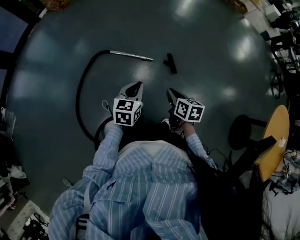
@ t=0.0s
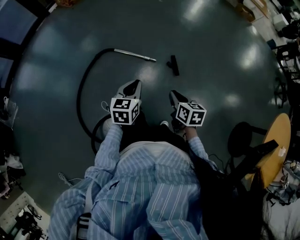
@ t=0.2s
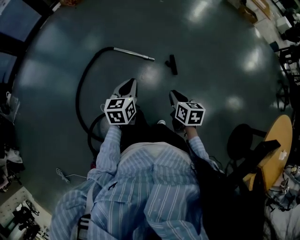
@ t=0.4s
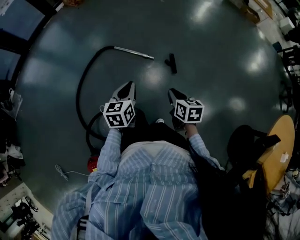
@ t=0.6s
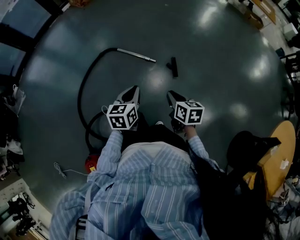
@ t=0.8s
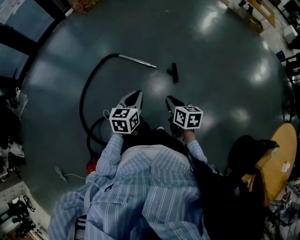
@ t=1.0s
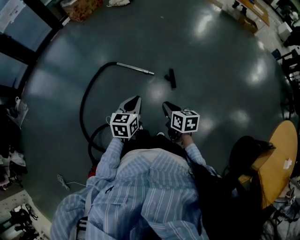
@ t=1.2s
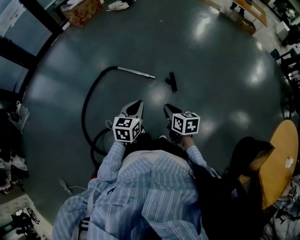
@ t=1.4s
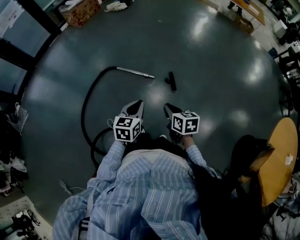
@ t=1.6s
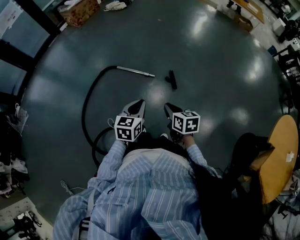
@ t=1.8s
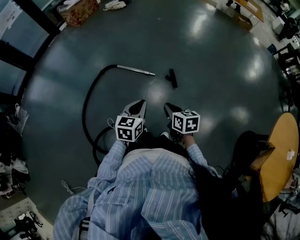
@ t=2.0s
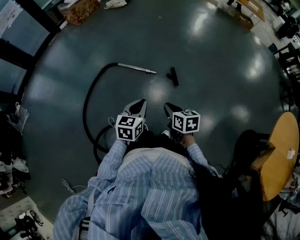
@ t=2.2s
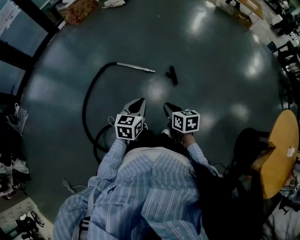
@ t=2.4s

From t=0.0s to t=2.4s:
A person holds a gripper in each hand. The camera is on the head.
From t=0.0s to t=1.2s: The grippers both shift backward and to the right by roughly 15 cm.
From t=1.2s to t=2.4s: The grippers move only a little.

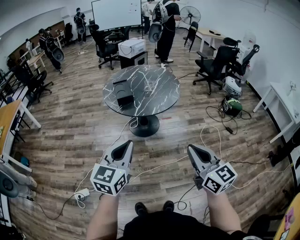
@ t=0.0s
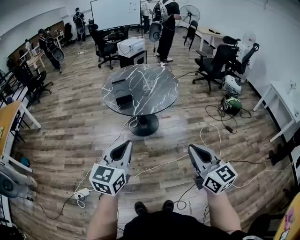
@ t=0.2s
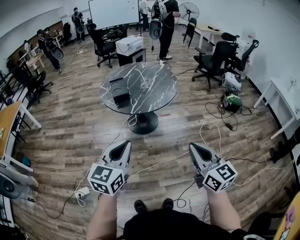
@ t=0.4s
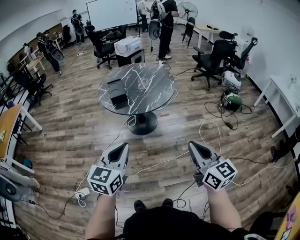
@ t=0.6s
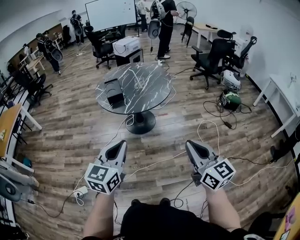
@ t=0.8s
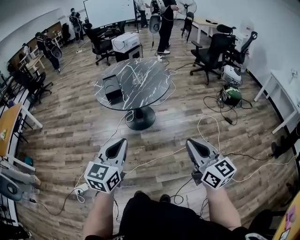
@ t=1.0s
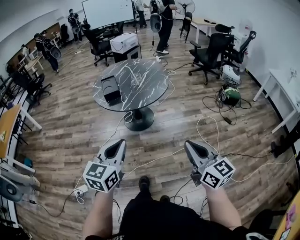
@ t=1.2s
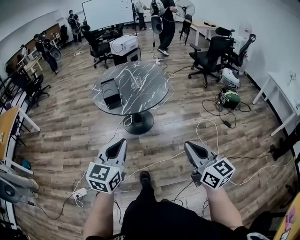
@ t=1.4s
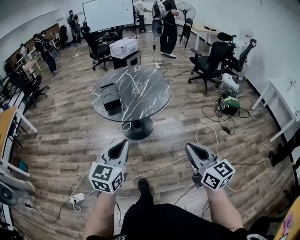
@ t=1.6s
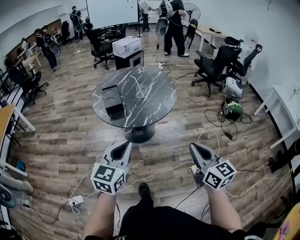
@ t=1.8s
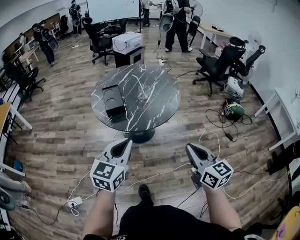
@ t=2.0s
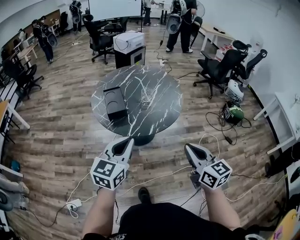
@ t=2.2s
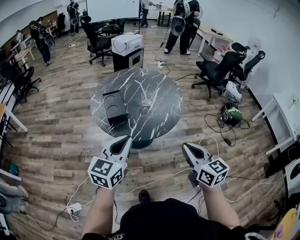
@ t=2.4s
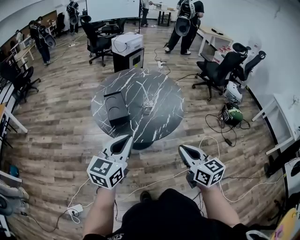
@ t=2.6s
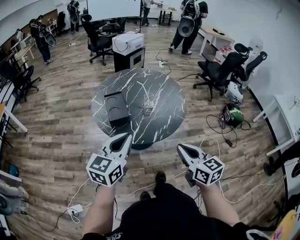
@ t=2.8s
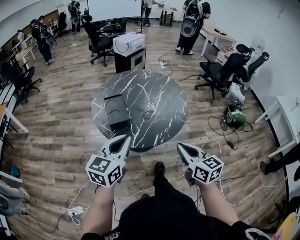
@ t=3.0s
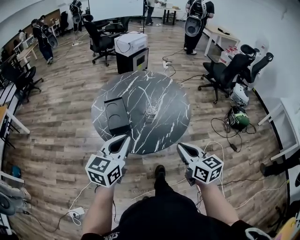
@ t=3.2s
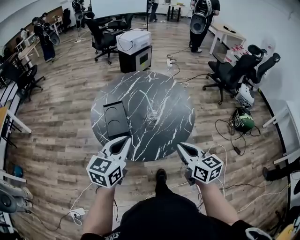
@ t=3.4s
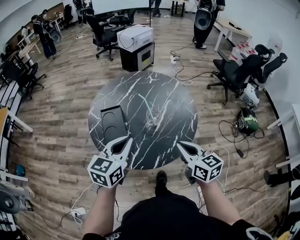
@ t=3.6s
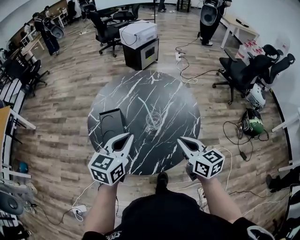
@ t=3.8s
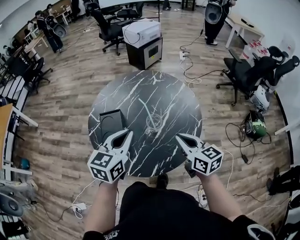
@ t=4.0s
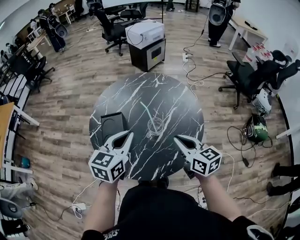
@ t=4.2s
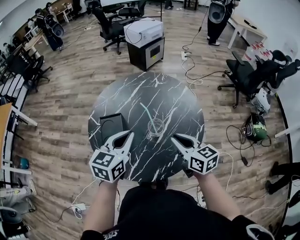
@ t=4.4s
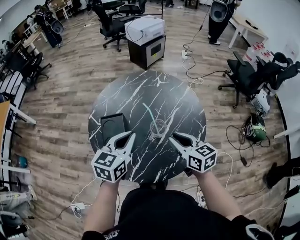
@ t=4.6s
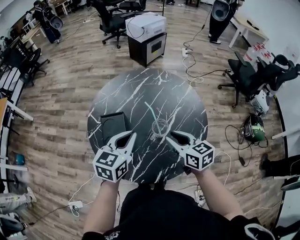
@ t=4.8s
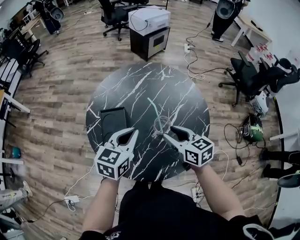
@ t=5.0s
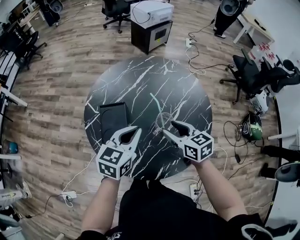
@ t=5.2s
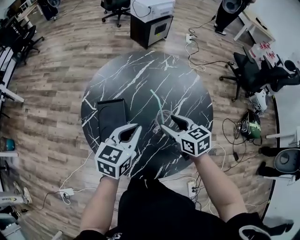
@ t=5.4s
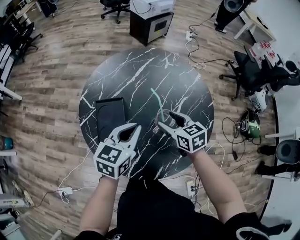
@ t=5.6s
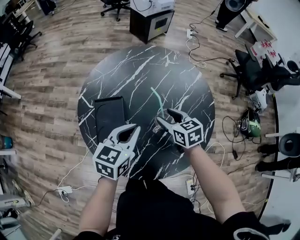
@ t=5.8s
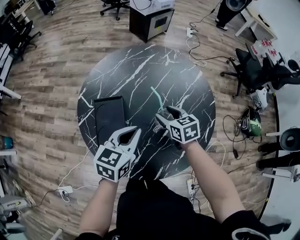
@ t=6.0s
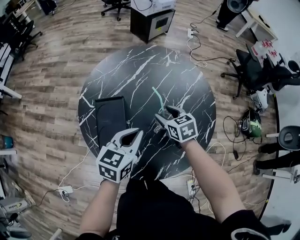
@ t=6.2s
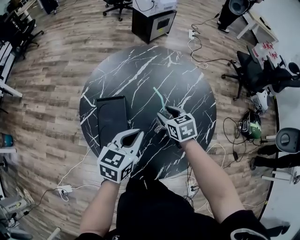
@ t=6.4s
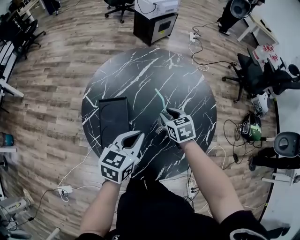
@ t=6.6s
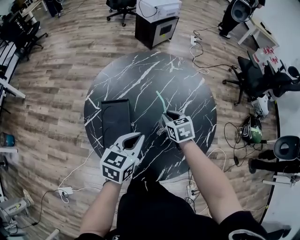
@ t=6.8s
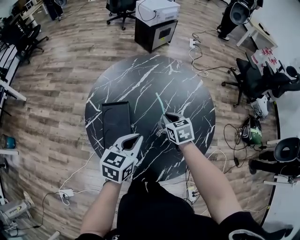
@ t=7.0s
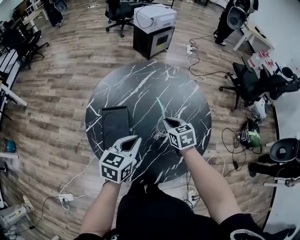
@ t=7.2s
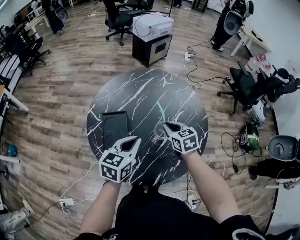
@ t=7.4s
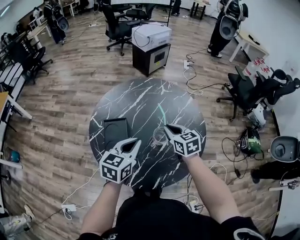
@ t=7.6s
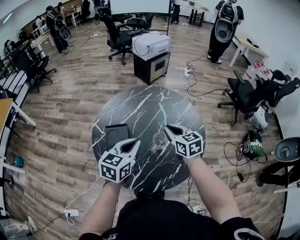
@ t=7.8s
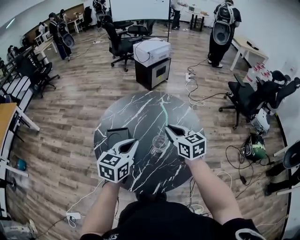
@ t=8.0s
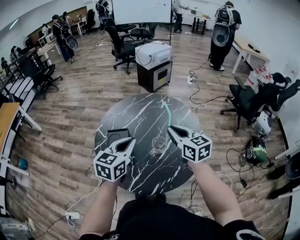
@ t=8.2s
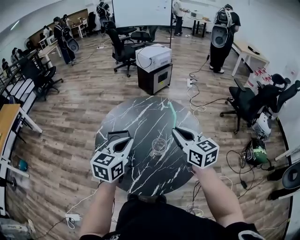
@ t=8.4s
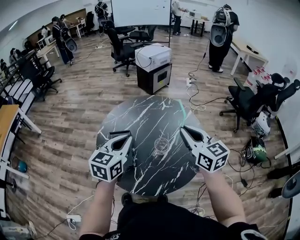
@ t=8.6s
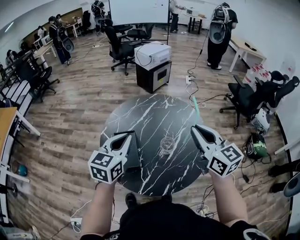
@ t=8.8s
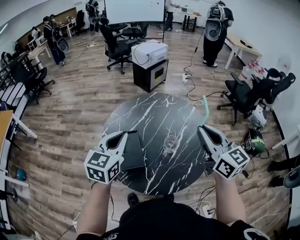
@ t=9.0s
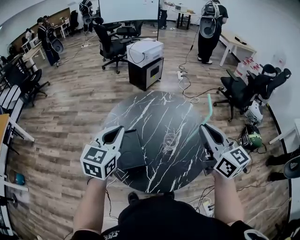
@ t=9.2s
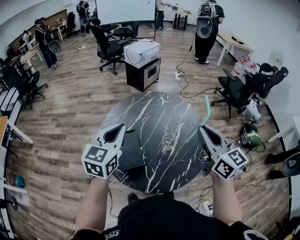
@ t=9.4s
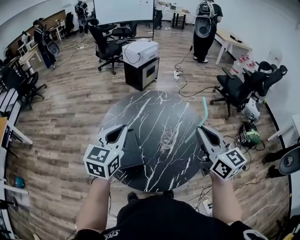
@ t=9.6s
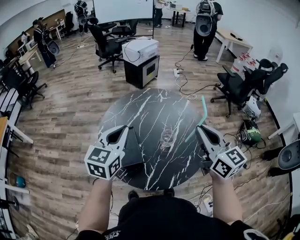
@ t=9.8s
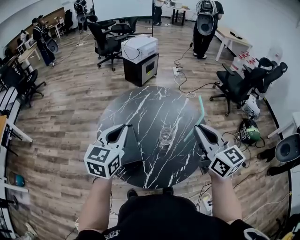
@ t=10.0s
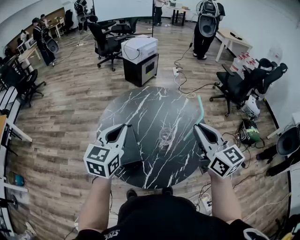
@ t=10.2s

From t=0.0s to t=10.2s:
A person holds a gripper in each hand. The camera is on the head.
From t=0.0s to t=1.4s: Both grippers travel together to the right, approximately 10 cm.
From t=1.4s to t=3.0s: The left gripper is displaced forward by about 35 cm, while the right gripper shifts about 40 cm forward and to the left.
From t=3.0s to t=4.4s: Both grippers move forward, some 30 cm.
From t=4.4s to t=5.8s: The left gripper shifts some 15 cm downward and forward, while the right gripper shifts approximately 20 cm downward, forward and to the left, rotates roughly 20 degrees, and opens its fingers.
From t=5.8s to t=7.2s: The right gripper closes.
From t=7.2s to t=8.8s: The right gripper moves upward, some 30 cm, and angles its fingers upward, by about 40 degrees. Meanwhile the left gripper is displaced upward by about 15 cm.

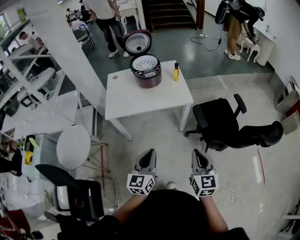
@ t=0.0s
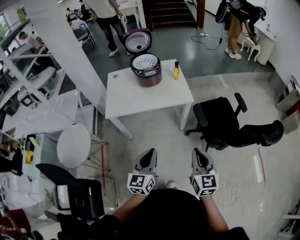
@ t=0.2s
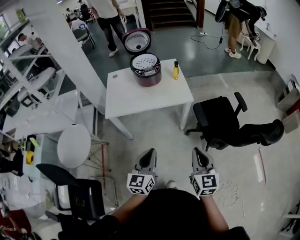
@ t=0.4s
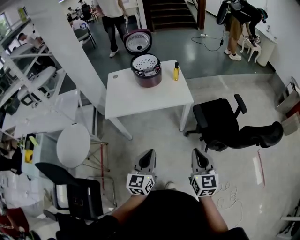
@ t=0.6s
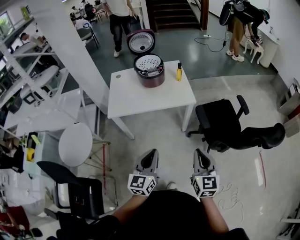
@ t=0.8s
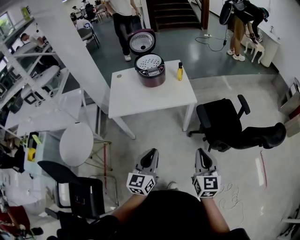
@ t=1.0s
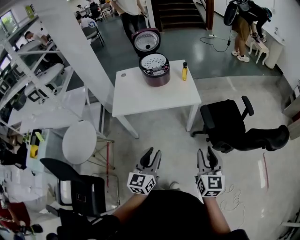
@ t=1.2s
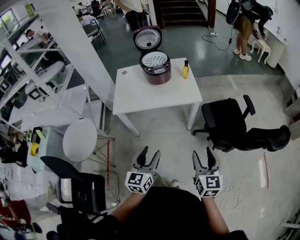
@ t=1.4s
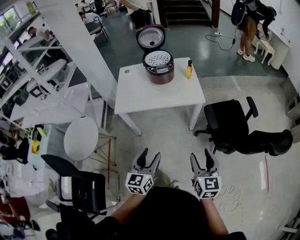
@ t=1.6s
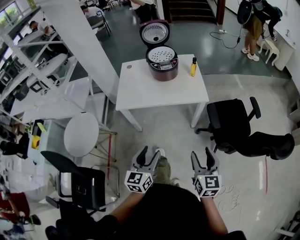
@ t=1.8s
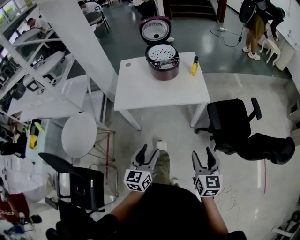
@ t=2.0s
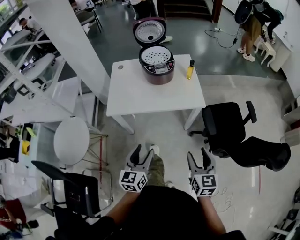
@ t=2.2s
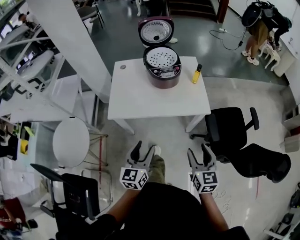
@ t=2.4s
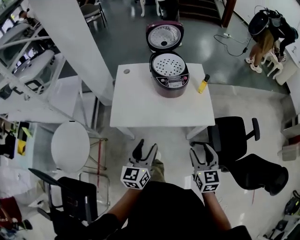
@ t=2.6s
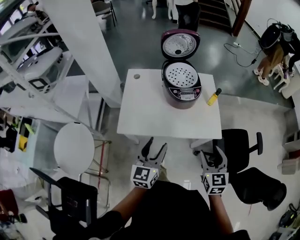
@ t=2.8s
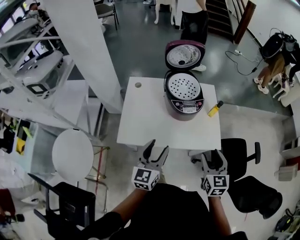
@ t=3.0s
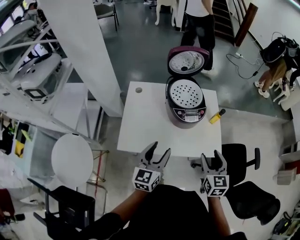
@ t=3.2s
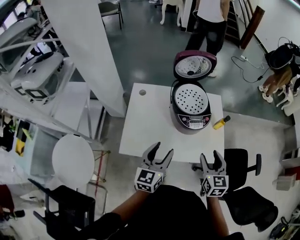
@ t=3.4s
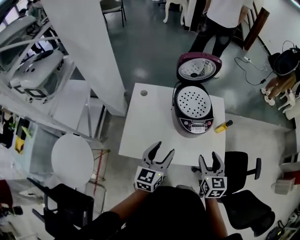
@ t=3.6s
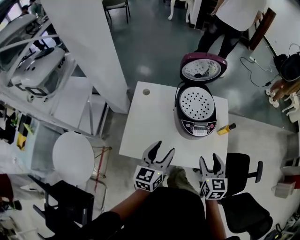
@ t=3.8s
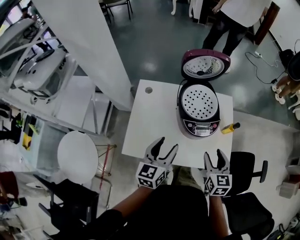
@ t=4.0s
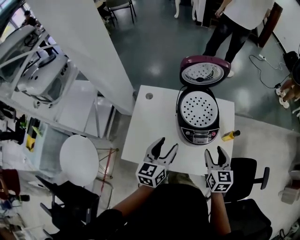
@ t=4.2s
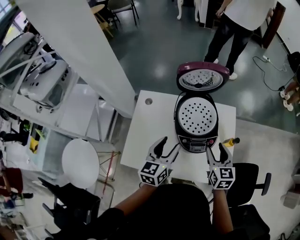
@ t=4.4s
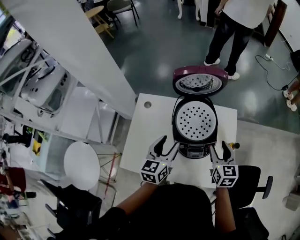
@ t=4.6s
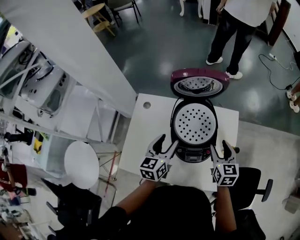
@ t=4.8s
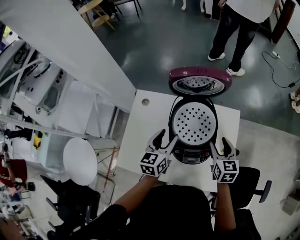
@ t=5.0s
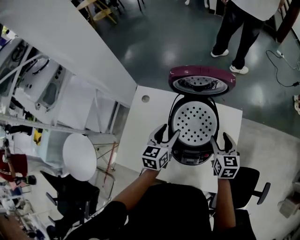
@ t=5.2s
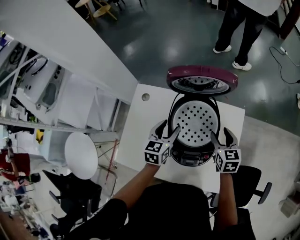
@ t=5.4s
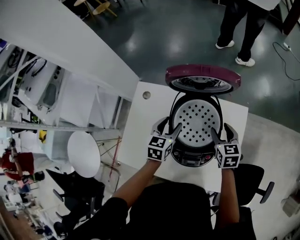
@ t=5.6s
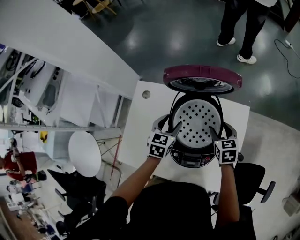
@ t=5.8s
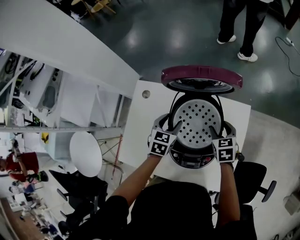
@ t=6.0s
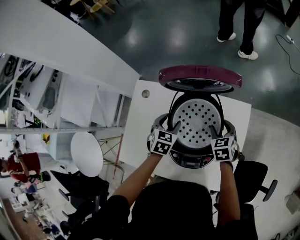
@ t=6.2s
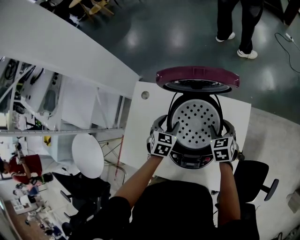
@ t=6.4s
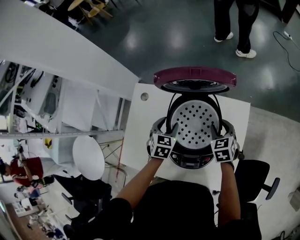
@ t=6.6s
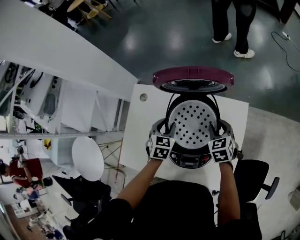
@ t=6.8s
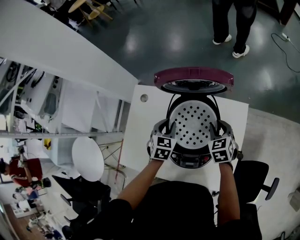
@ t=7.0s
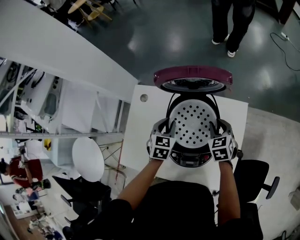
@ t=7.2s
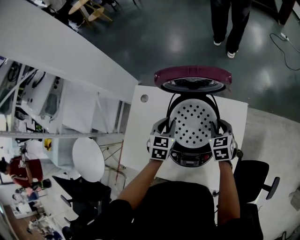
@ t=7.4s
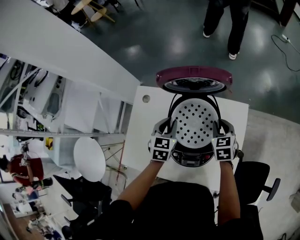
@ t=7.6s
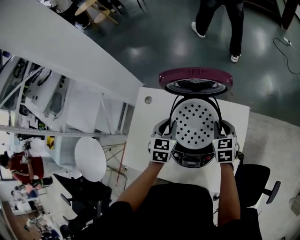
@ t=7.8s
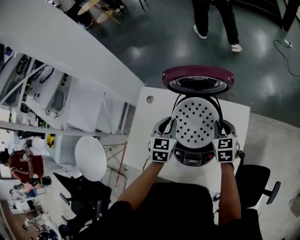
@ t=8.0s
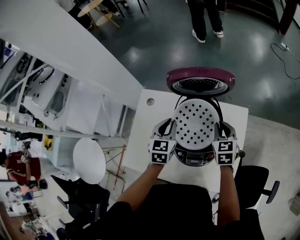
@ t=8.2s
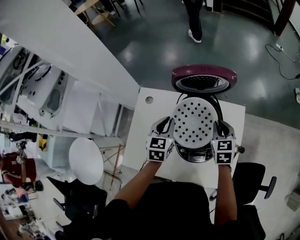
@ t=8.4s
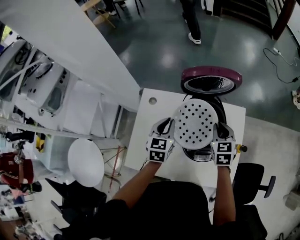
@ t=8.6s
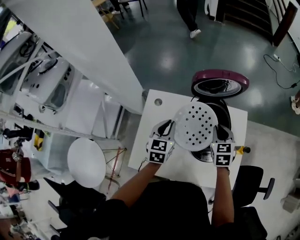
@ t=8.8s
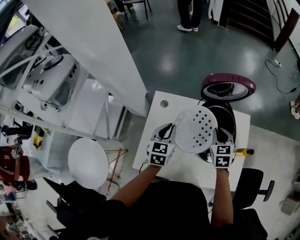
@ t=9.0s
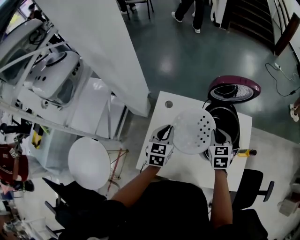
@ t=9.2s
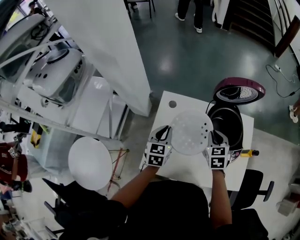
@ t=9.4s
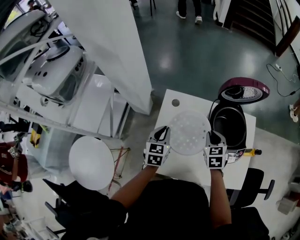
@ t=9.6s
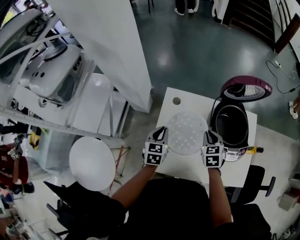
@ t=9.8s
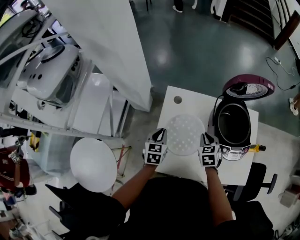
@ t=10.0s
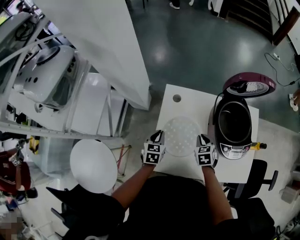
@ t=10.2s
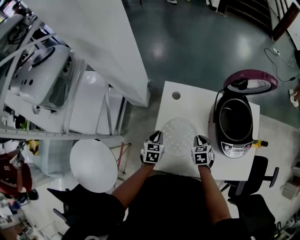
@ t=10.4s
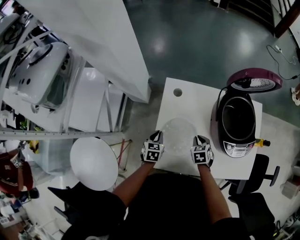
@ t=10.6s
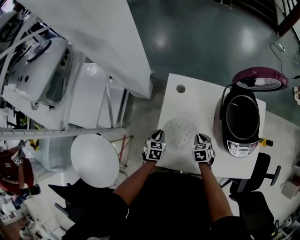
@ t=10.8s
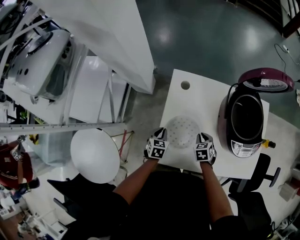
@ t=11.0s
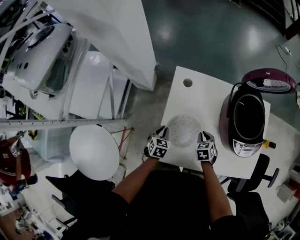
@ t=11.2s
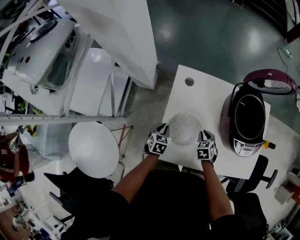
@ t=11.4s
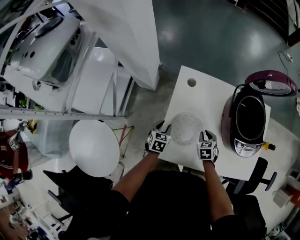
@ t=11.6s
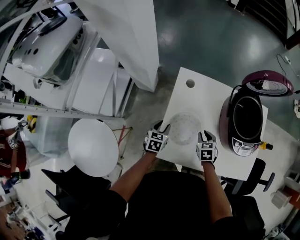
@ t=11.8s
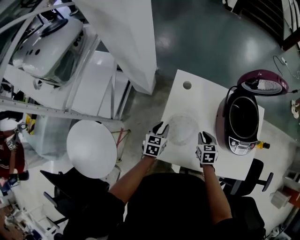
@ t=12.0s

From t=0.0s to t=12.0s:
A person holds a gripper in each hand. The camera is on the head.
From t=0.0s to t=1.6s: The right gripper opens up. The left gripper opens.
From t=1.6s to t=3.0s: Both grippers travel together forward, some 35 cm.
From t=3.0s to t=4.4s: The grippers both shift forward by about 25 cm.
From t=4.4s to t=6.0s: The two grippers go approximately 25 cm forward and downward. The right gripper changes its angle by some 30 degrees, while the left gripper rotates some 30 degrees.
From t=6.0s to t=7.6s: The right gripper closes its fingers, while the left gripper closes its fingers.
From t=7.6s to t=9.0s: The right gripper heads to the left, upward and backward, covering roughly 15 cm. Meanwhile the left gripper goes some 15 cm to the left, backward and upward.
From t=9.0s to t=10.4s: The left gripper travels downward and to the left by some 25 cm, while the right gripper goes some 25 cm downward, to the left and backward.
From t=10.4s to t=12.0s: The left gripper reaches some 10 cm downward, then returns, while the right gripper moves approximately 5 cm downward and comes back.
